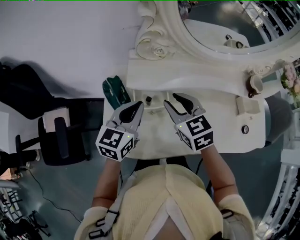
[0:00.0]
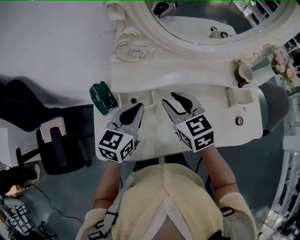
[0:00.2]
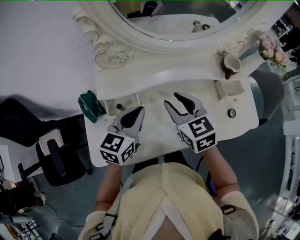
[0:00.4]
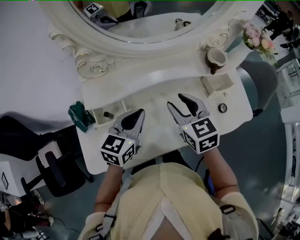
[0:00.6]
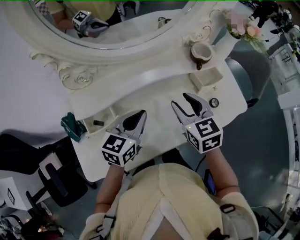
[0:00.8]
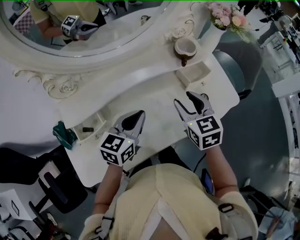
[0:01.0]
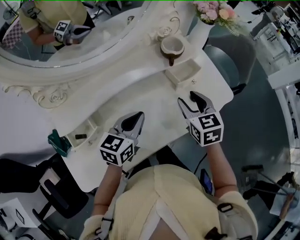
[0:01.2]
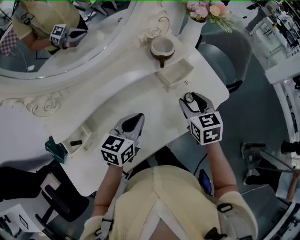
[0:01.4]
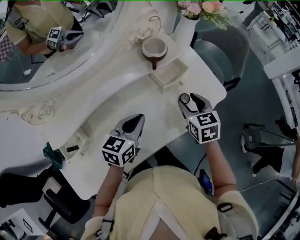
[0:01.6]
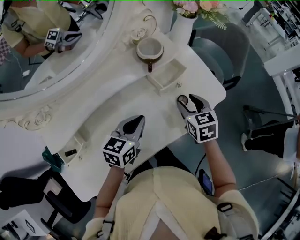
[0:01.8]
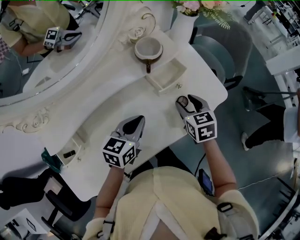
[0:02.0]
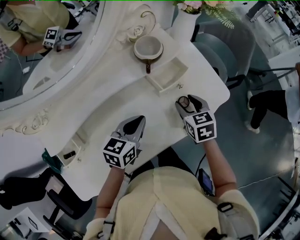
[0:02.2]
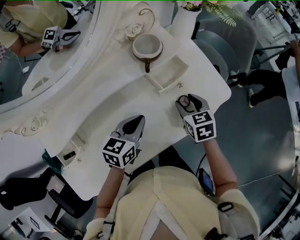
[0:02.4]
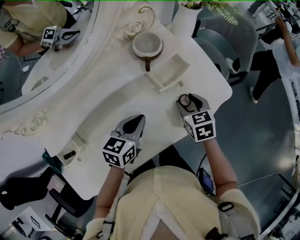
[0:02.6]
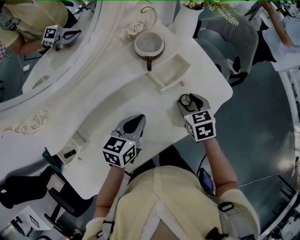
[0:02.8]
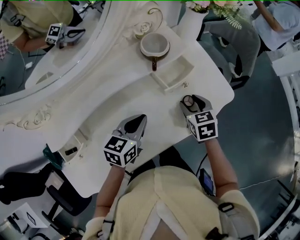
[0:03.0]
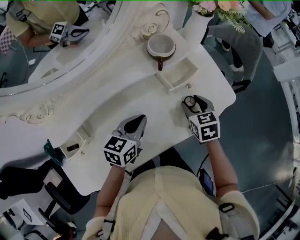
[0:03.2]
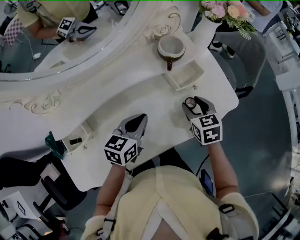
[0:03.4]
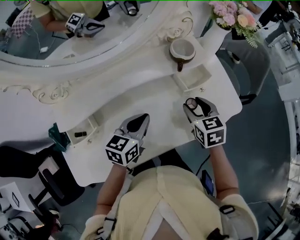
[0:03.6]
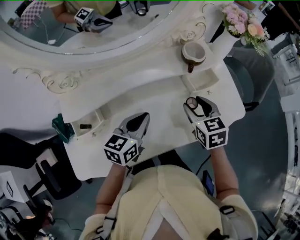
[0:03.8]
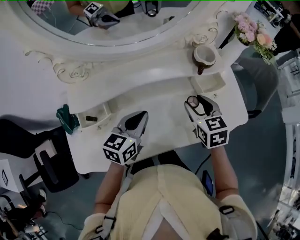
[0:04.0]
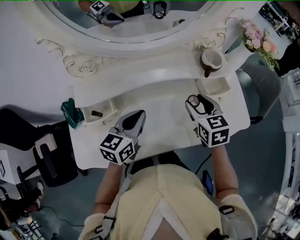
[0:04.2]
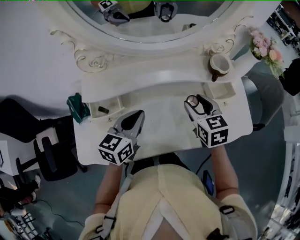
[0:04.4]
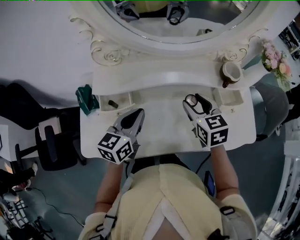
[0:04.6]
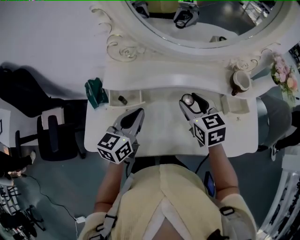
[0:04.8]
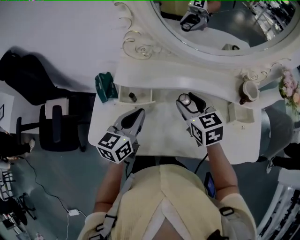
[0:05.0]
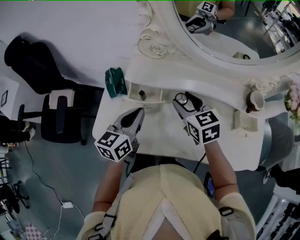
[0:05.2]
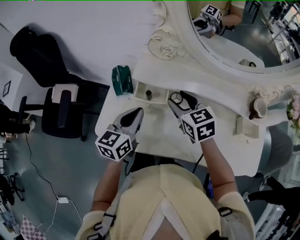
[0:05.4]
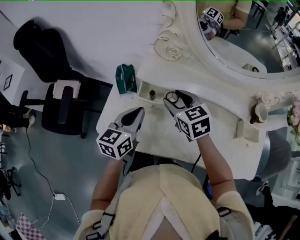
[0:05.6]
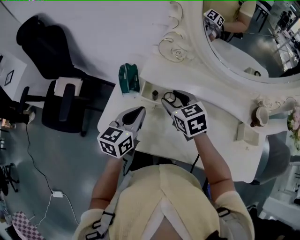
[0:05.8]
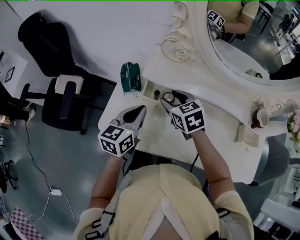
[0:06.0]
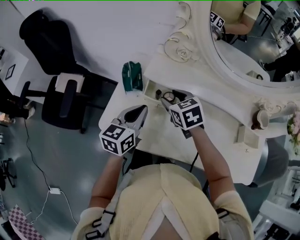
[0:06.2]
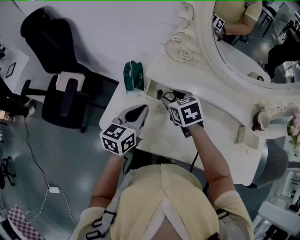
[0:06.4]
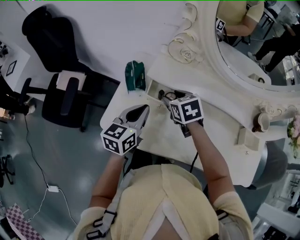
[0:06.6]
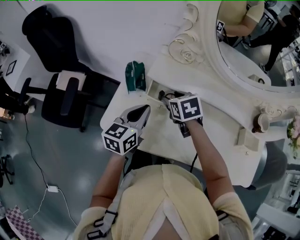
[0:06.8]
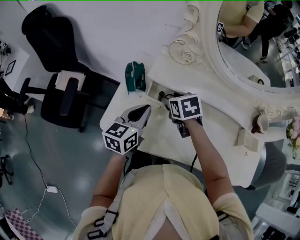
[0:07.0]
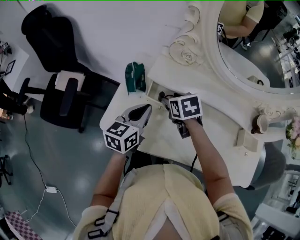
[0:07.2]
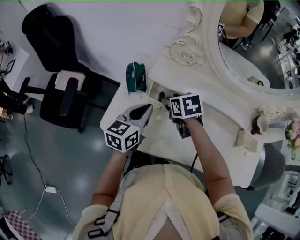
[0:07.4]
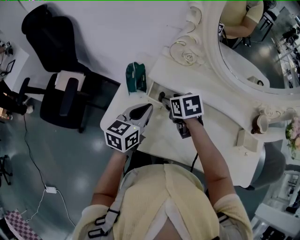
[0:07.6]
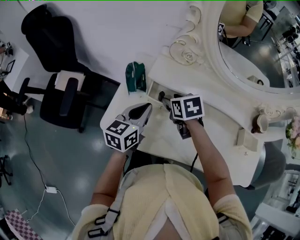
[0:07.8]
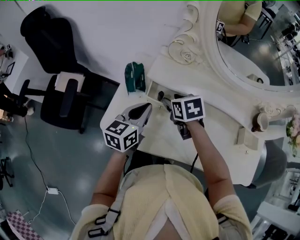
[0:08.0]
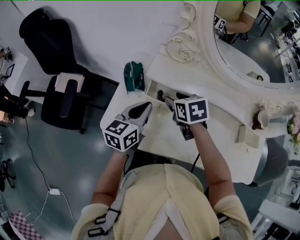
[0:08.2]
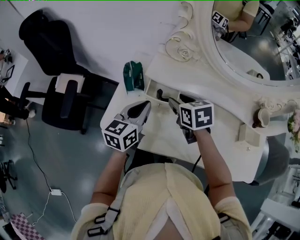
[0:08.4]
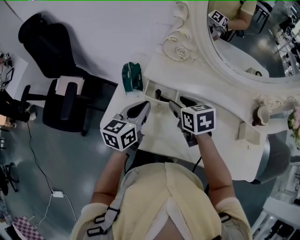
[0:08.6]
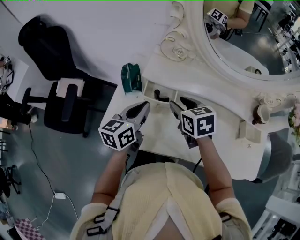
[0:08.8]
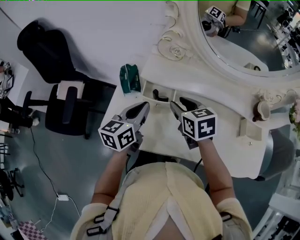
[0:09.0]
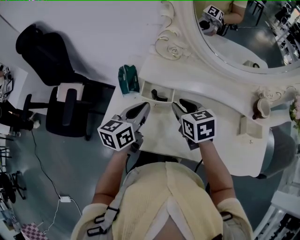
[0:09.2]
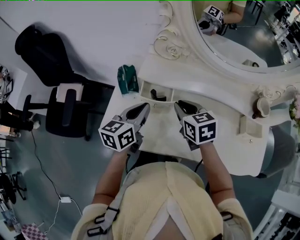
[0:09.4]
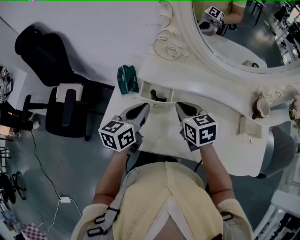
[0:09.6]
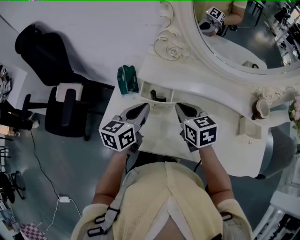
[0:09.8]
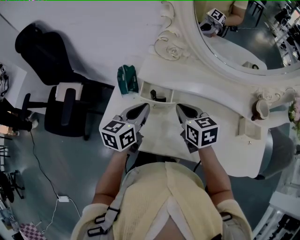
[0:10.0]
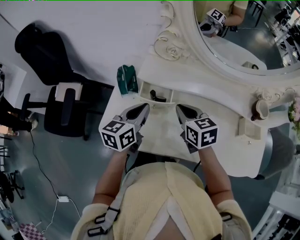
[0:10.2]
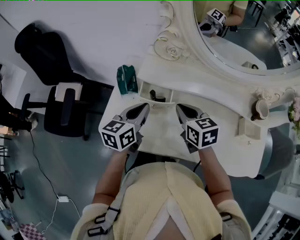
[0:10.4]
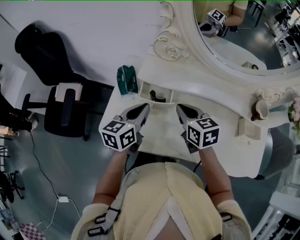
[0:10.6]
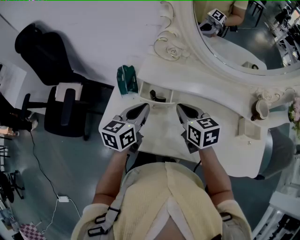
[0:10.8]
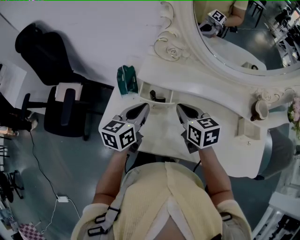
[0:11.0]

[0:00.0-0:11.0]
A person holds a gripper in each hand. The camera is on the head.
0.0 to 1.6 s: The left gripper changes place by about 40 cm, and swivels some 40 degrees, while the right gripper changes place by some 50 cm, and changes its angle by about 50 degrees.
1.6 to 3.2 s: The right gripper moves downward, about 5 cm.
3.2 to 4.8 s: The right gripper changes place by some 30 cm, and swivels about 40 degrees. Meanwhile the left gripper ends up about 25 cm from where it was, and rotates some 40 degrees.
4.8 to 6.2 s: The right gripper shifts roughly 20 cm to the left, and swivels approximately 30 degrees. The left gripper is displaced to the left by approximately 10 cm.
6.2 to 7.8 s: The grippers move only a little.
7.8 to 9.4 s: The right gripper is displaced to the right and backward by approximately 10 cm, and closes.
9.4 to 11.0 s: There are only small adjustments of the grippers.

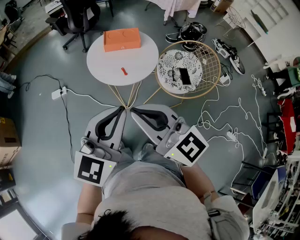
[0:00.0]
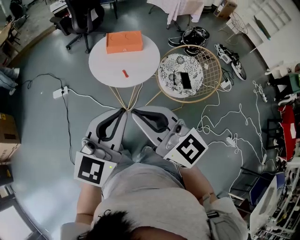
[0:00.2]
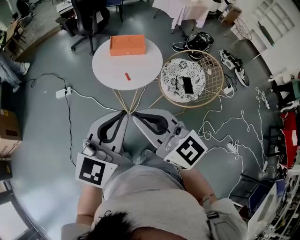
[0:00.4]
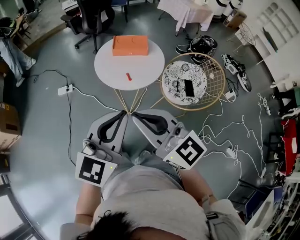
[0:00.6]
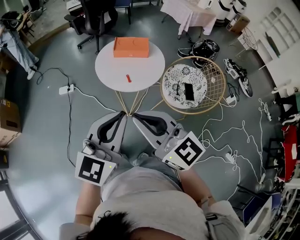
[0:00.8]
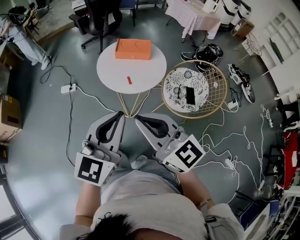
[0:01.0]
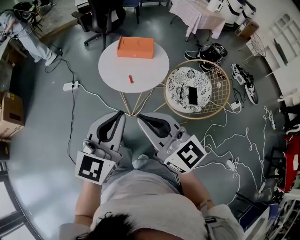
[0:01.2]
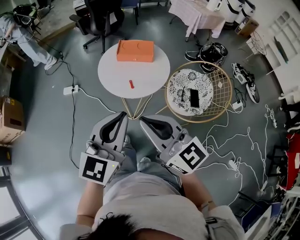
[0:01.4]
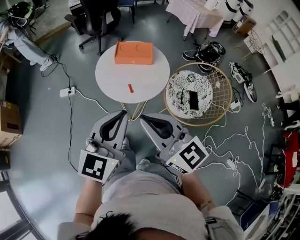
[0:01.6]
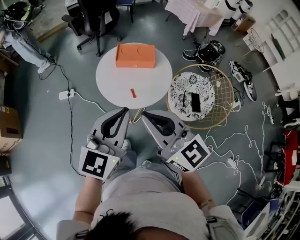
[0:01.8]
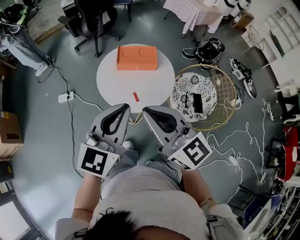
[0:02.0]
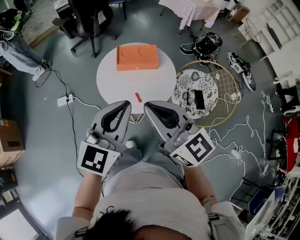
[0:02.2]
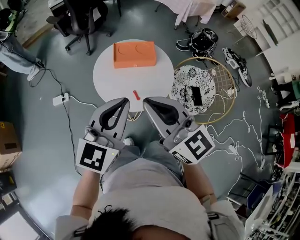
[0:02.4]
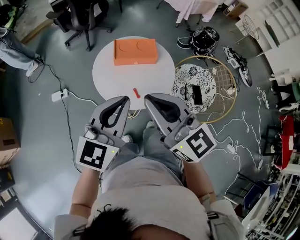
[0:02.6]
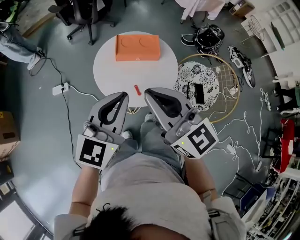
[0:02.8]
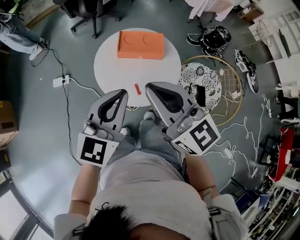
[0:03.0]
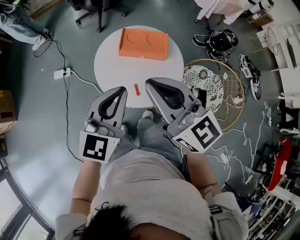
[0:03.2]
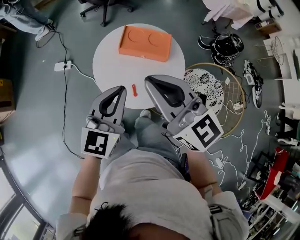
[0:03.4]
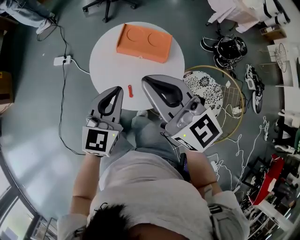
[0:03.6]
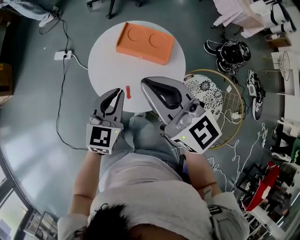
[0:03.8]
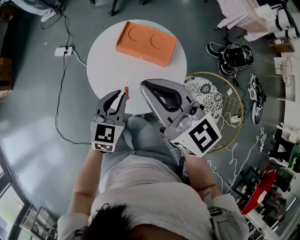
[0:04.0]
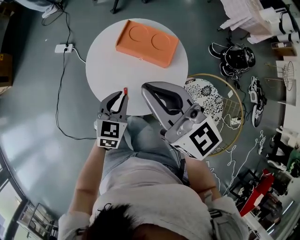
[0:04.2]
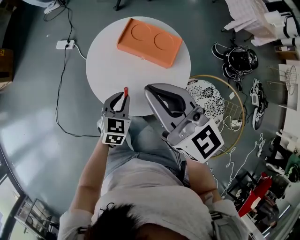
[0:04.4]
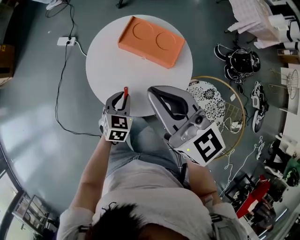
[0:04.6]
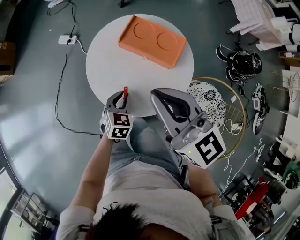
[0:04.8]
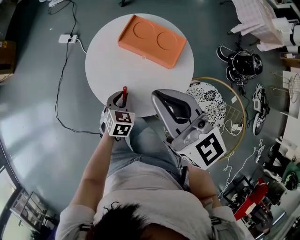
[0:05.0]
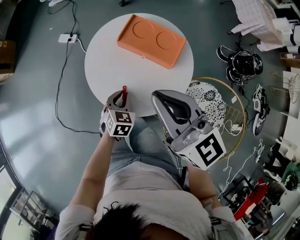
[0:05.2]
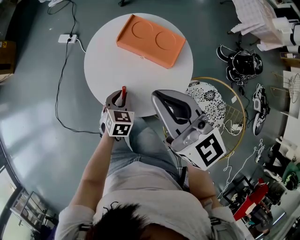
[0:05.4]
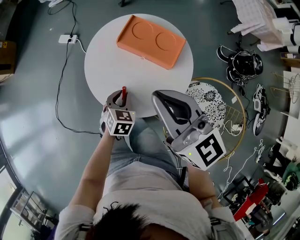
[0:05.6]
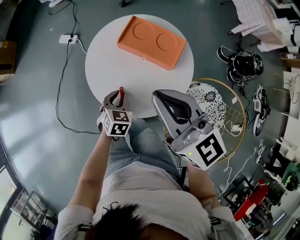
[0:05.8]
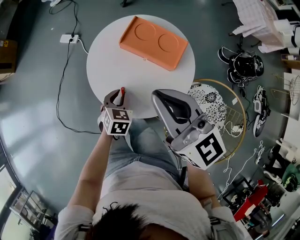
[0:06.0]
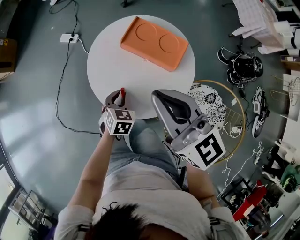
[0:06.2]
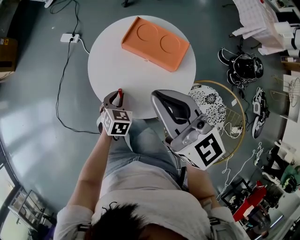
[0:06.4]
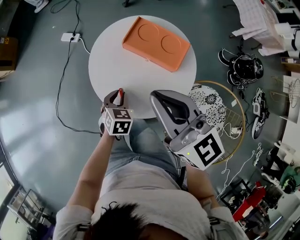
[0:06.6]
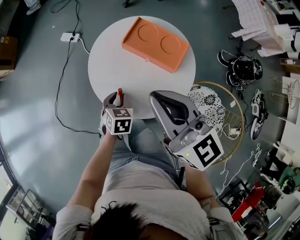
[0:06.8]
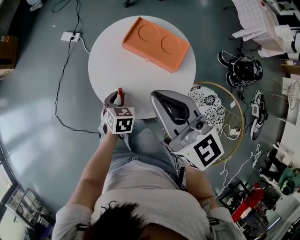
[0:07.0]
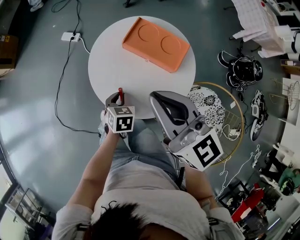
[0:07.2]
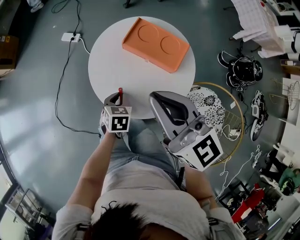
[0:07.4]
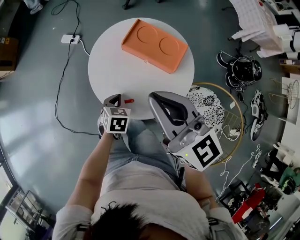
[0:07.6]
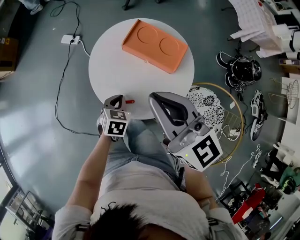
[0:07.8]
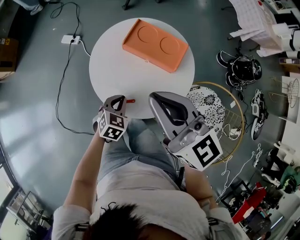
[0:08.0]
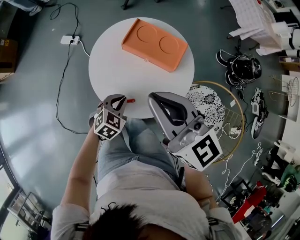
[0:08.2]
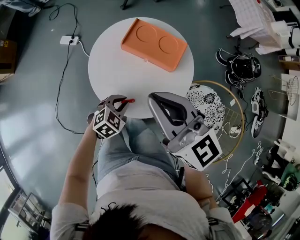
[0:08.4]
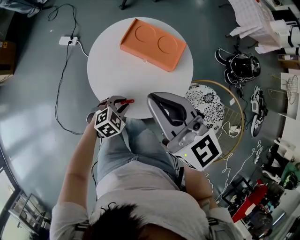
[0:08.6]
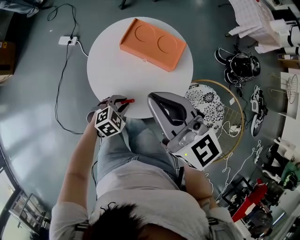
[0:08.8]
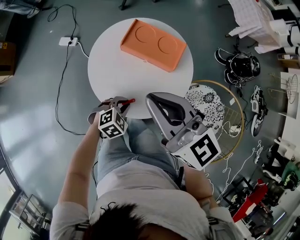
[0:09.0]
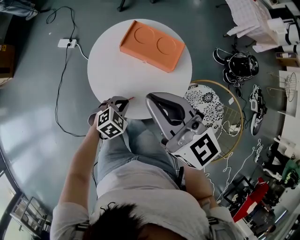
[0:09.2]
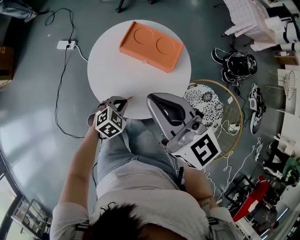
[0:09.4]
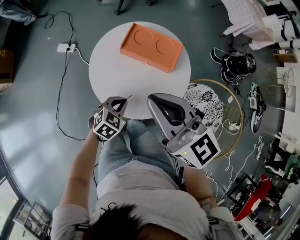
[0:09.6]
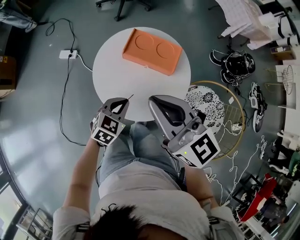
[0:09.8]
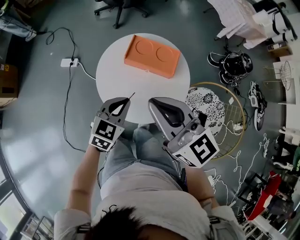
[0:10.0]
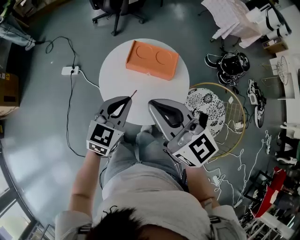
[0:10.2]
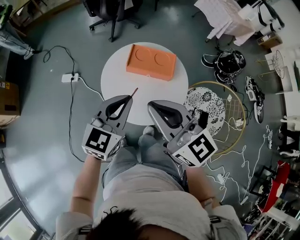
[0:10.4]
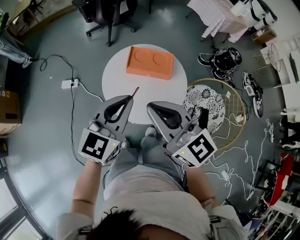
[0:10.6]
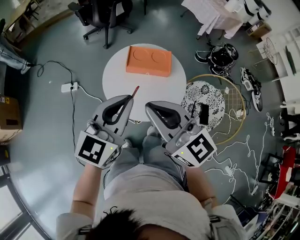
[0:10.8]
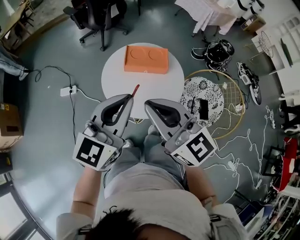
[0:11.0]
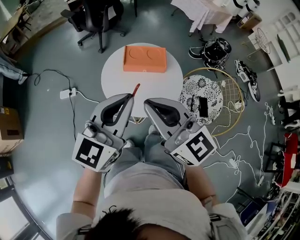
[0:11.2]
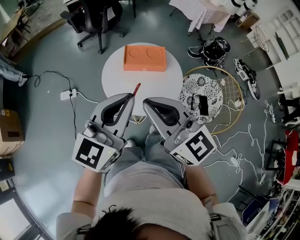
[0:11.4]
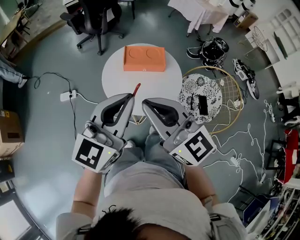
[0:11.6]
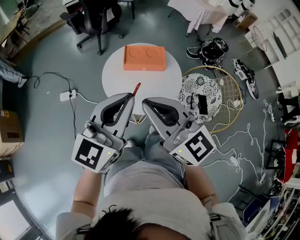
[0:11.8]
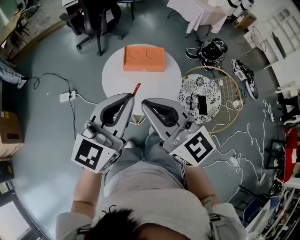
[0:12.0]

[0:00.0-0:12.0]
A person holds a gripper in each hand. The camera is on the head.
0.0 to 1.6 s: The left gripper shifts about 10 cm forward. Meanwhile the right gripper goes approximately 10 cm forward and to the right.
1.6 to 3.0 s: The two grippers go roughly 15 cm forward.
3.0 to 4.4 s: The left gripper moves downward, about 25 cm, and points its fingers about 30 degrees further downward, while the right gripper is displaced forward, to the right and downward by roughly 15 cm, and rotates some 20 degrees.
4.4 to 6.0 s: The left gripper shifts about 5 cm downward.
6.0 to 7.6 s: The grippers make only small movements.
7.6 to 9.0 s: The left gripper moves approximately 5 cm, and twists approximately 50 degrees clockwise, seen from behind.
9.0 to 10.4 s: The right gripper heads to the left, backward and upward, covering about 10 cm, while the left gripper moves upward, some 30 cm, and tips its fingers upward by about 50 degrees.
10.4 to 12.0 s: The right gripper goes about 10 cm backward, to the left and upward; the left gripper moves upward and backward, approximately 15 cm, and changes its angle by roughly 20 degrees.

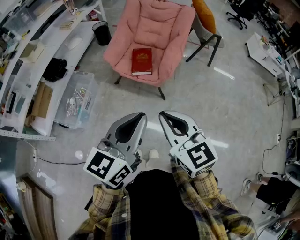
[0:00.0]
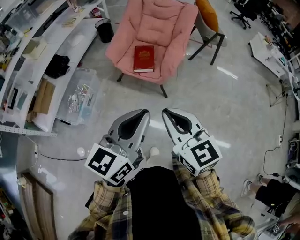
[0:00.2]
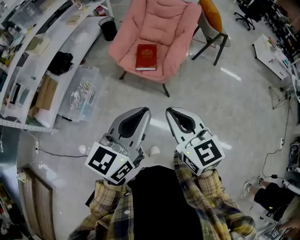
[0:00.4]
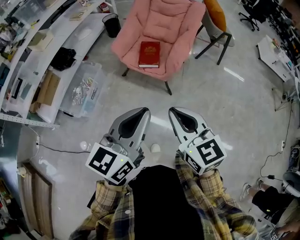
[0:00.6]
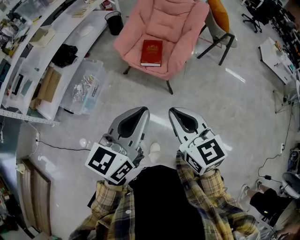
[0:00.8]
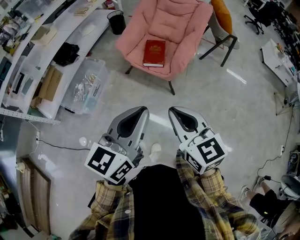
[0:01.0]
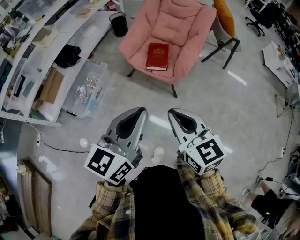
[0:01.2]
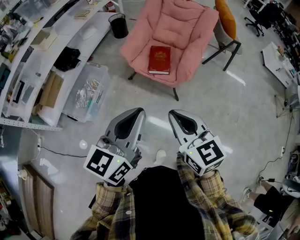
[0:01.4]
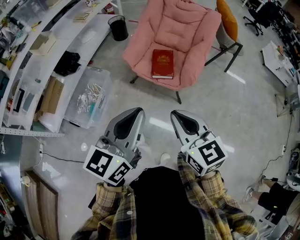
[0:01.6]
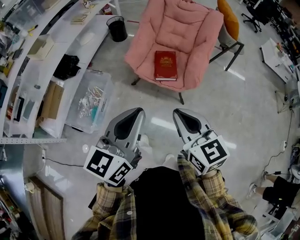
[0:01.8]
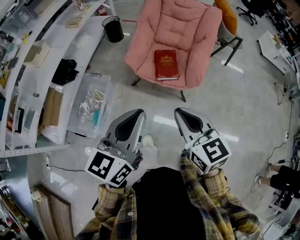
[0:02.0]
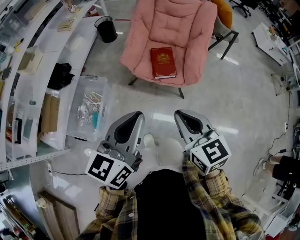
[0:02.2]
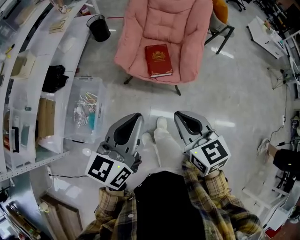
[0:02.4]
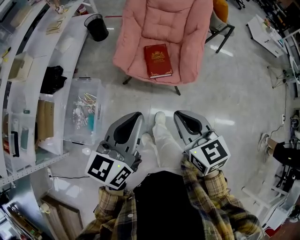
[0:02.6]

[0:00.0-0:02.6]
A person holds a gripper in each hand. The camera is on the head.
0.0 to 1.2 s: There are only small adjustments of the grippers.
1.2 to 2.6 s: Both grippers travel together forward and to the left, about 25 cm.
